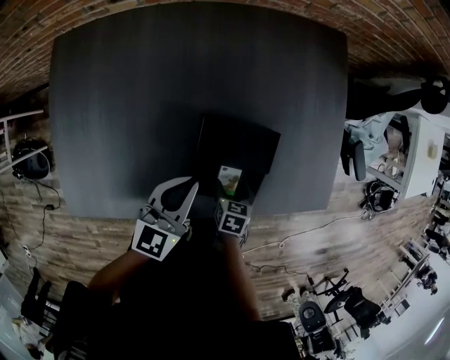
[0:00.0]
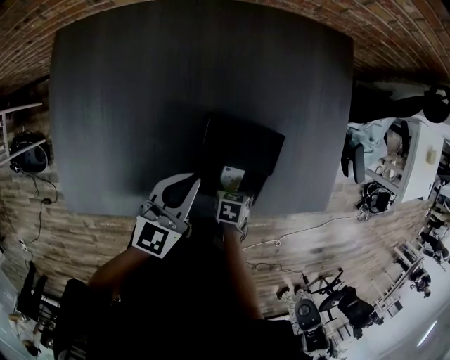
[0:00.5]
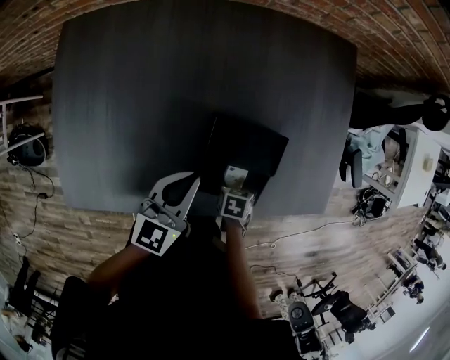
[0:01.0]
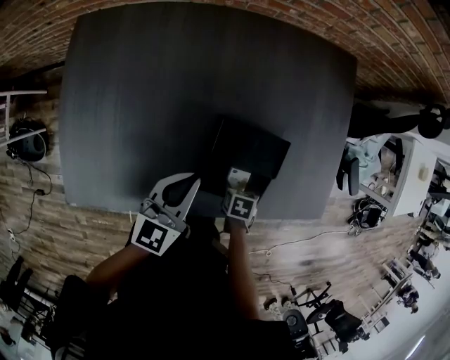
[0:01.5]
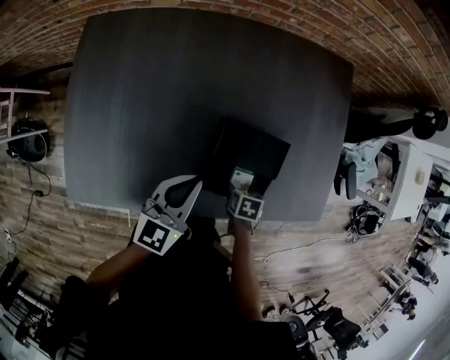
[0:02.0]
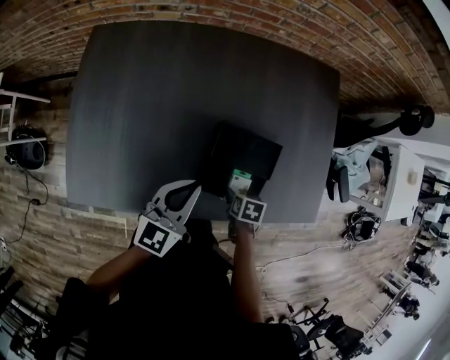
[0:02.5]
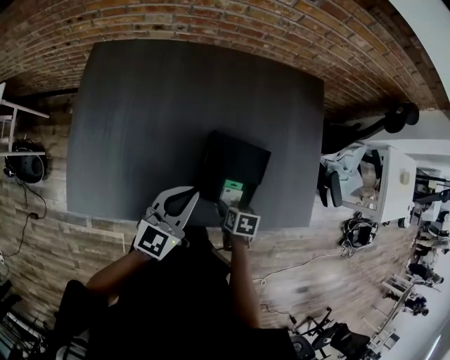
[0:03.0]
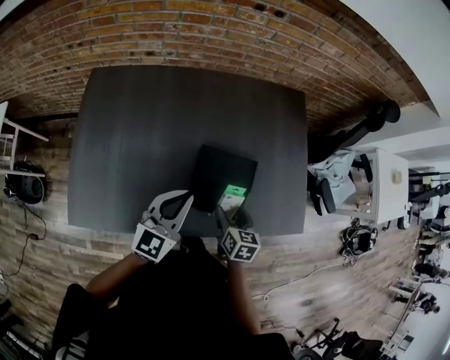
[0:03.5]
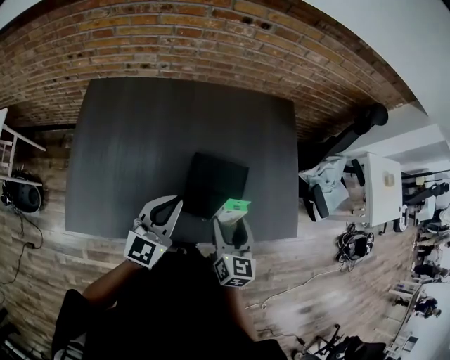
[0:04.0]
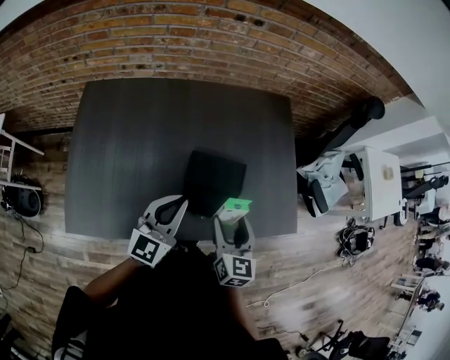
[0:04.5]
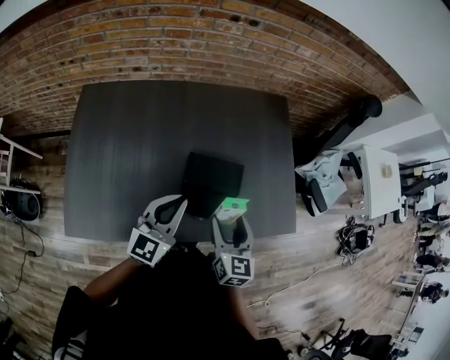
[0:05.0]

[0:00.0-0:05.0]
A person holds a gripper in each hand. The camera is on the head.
0:00.0 to 0:02.5: The left gripper moves approximately 10 cm.
0:02.5 to 0:05.0: The right gripper goes roughly 25 cm upward, and points its fingers roughly 50 degrees further upward; the left gripper goes about 10 cm upward.

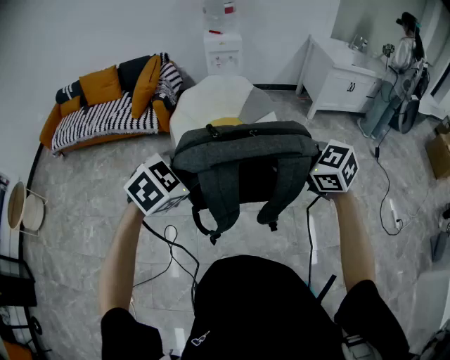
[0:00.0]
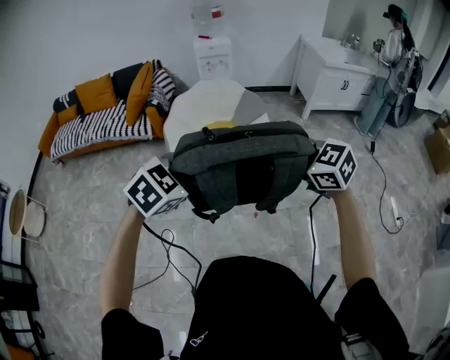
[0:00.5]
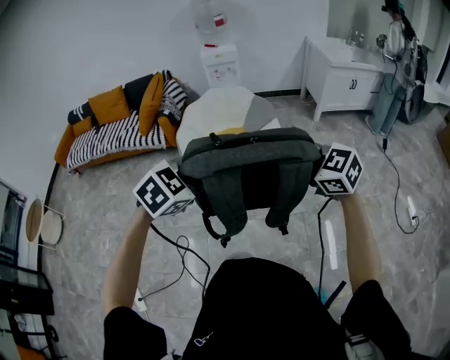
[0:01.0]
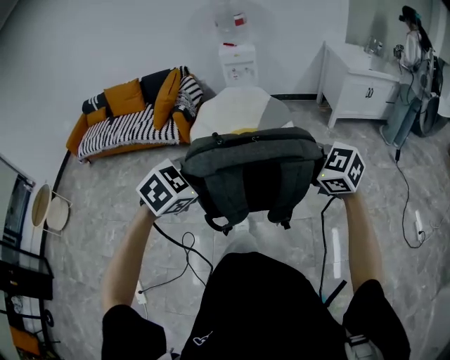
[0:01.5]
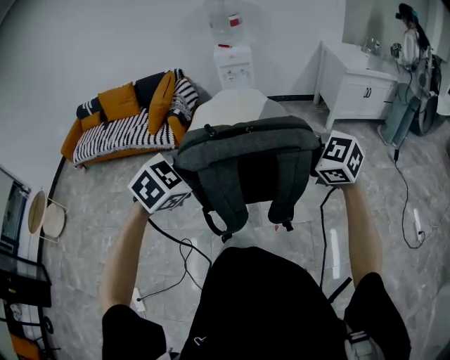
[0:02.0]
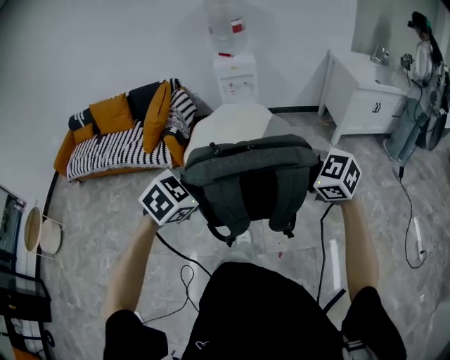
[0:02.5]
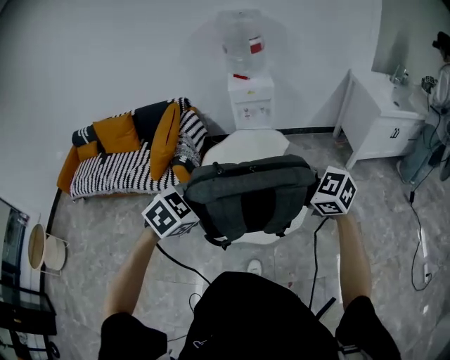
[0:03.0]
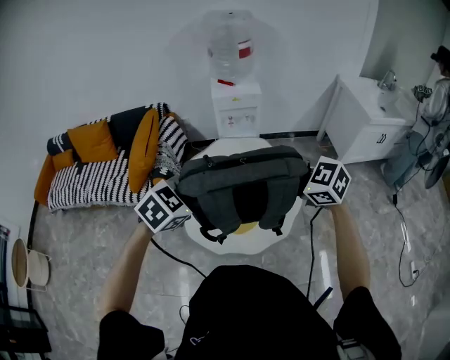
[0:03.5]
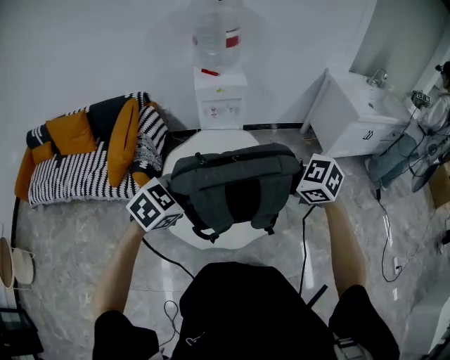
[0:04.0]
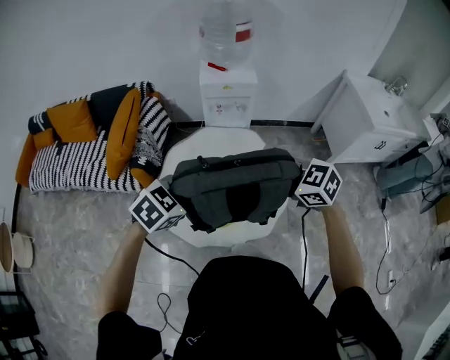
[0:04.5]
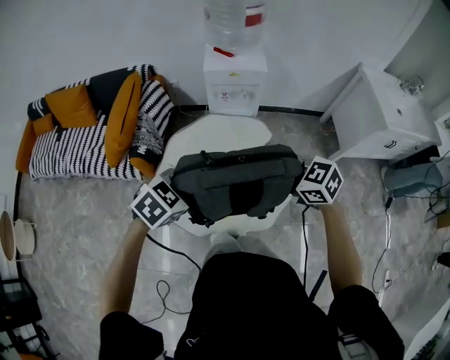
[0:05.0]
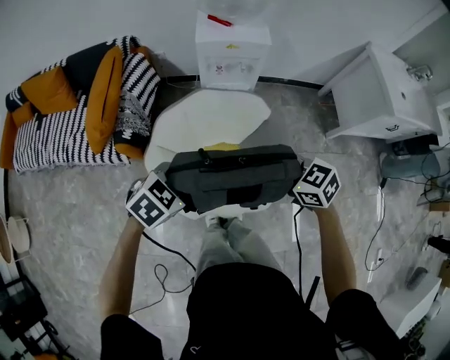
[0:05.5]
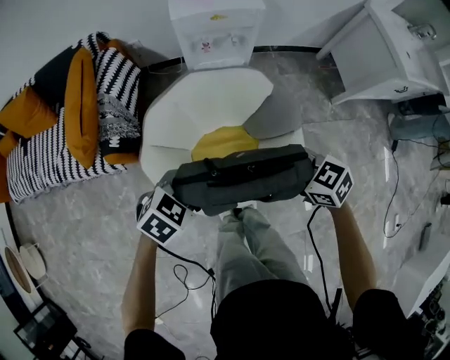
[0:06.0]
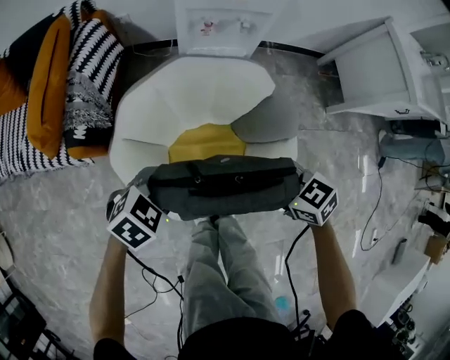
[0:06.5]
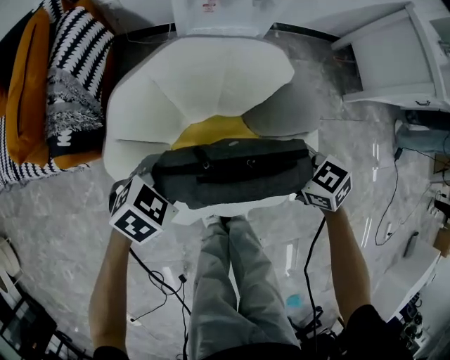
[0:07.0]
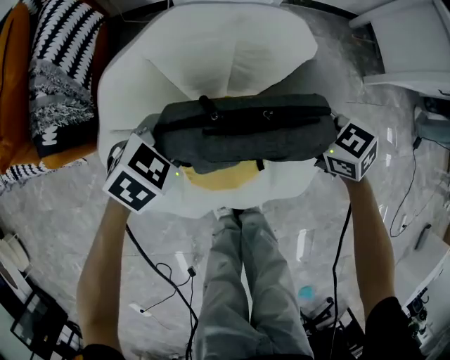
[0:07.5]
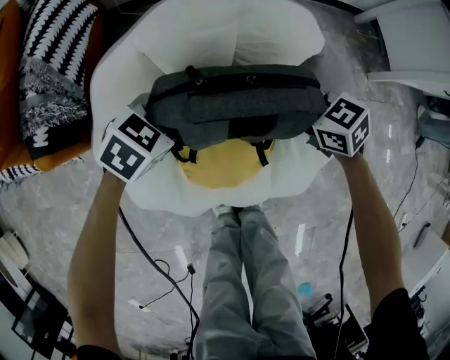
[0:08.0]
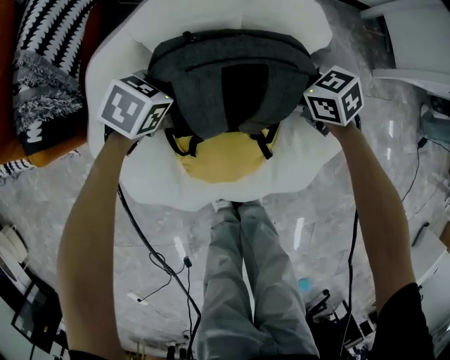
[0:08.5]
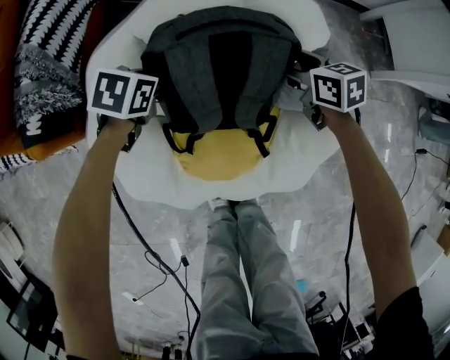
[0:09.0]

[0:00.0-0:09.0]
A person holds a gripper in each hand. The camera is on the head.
0:00.0 to 0:02.0: The left gripper travels to the right by some 5 cm. Meanwhile the right gripper shifts by approximately 5 cm.
0:02.0 to 0:04.5: The pair of grippers is taken forward, approximately 60 cm.
0:04.5 to 0:07.0: Both grippers travel together downward, some 40 cm. The right gripper rotates about 20 degrees.
0:07.0 to 0:09.0: The right gripper shifts by roughly 25 cm, turns by roughly 20 degrees, and opens its fingers. Meanwhile the left gripper shifts approximately 15 cm downward, changes its angle by about 30 degrees, and opens its fingers.

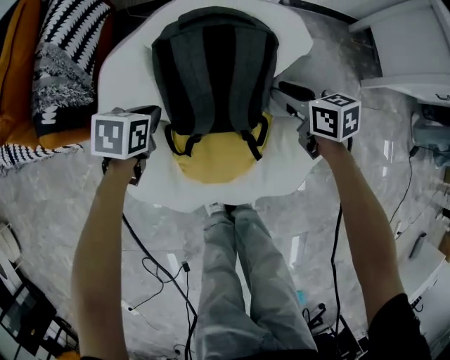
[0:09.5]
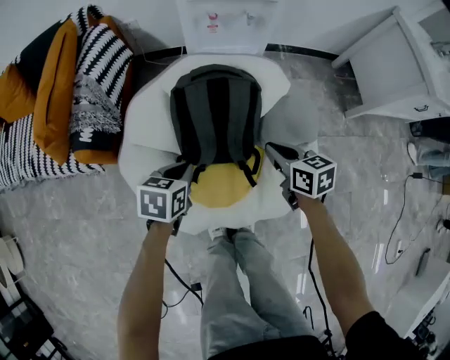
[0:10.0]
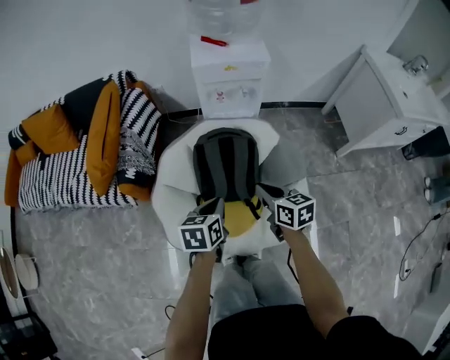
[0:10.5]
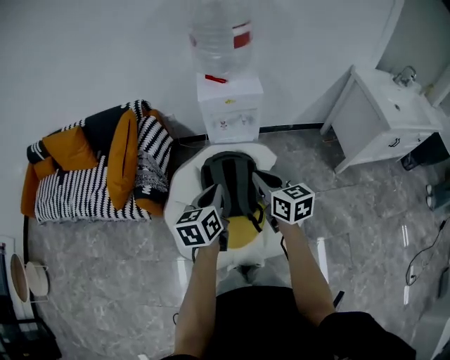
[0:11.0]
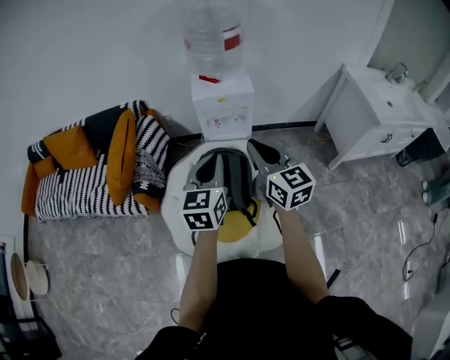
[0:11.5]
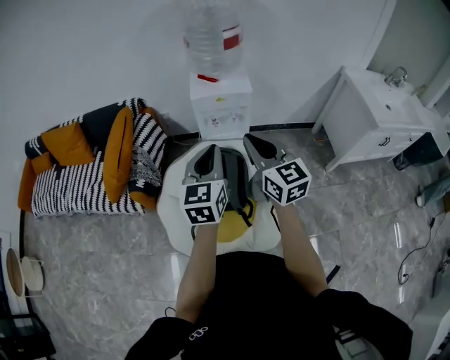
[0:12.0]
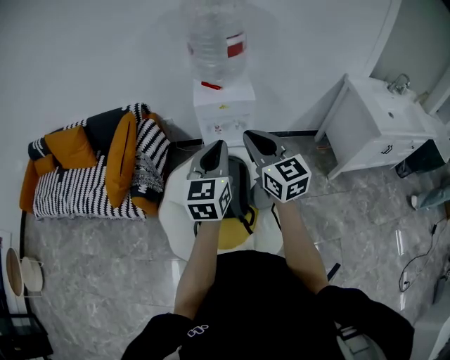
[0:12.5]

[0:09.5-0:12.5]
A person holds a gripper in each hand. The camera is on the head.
0:09.5 to 0:11.0: The two grippers go some 40 cm upward. The left gripper tilts its fingers about 40 degrees upward; the right gripper swivels roughly 30 degrees, and closes.
0:11.0 to 0:12.5: The left gripper shifts about 15 cm upward and to the right, and rotates some 30 degrees, while the right gripper goes roughly 15 cm upward, and rotates about 30 degrees.

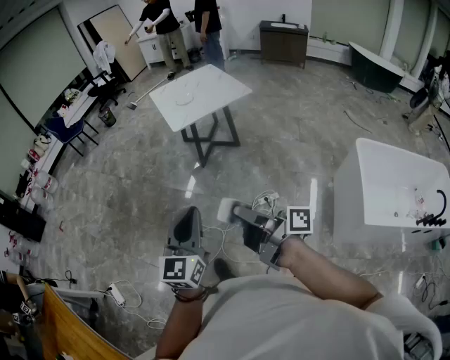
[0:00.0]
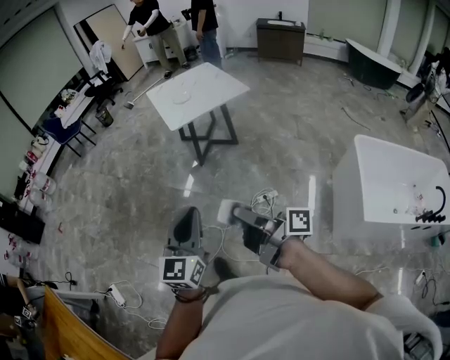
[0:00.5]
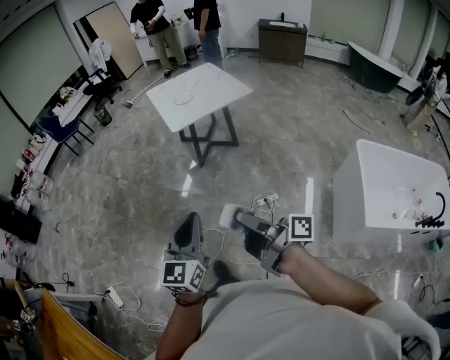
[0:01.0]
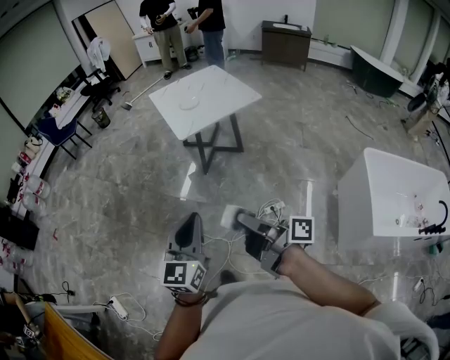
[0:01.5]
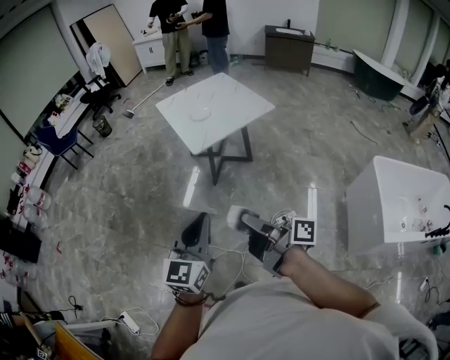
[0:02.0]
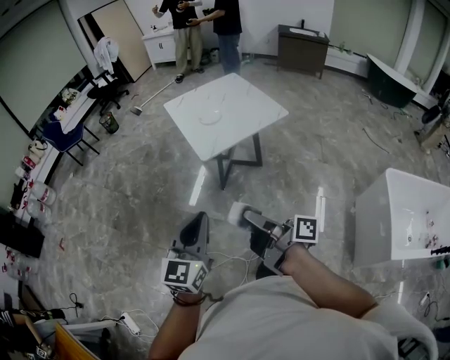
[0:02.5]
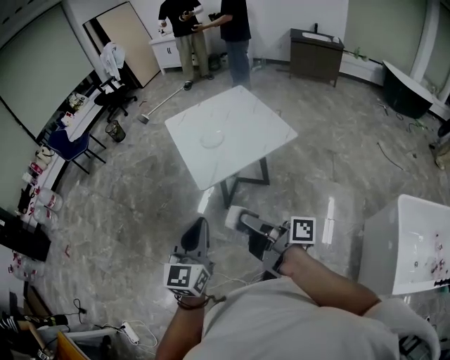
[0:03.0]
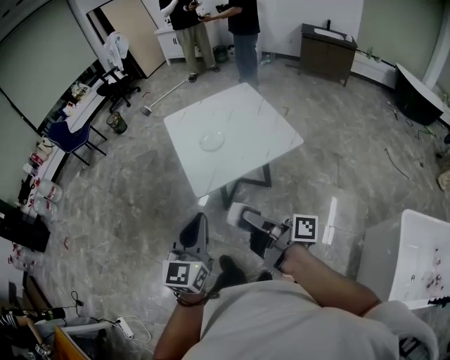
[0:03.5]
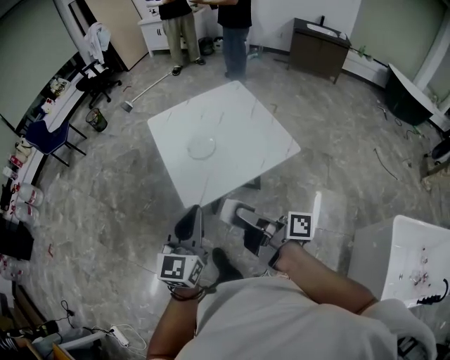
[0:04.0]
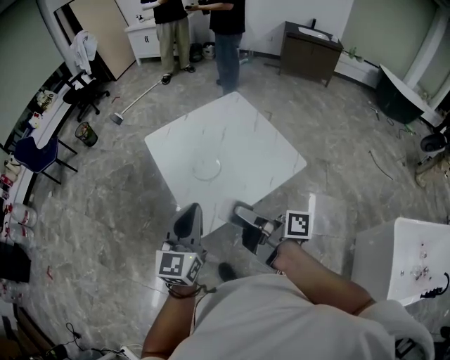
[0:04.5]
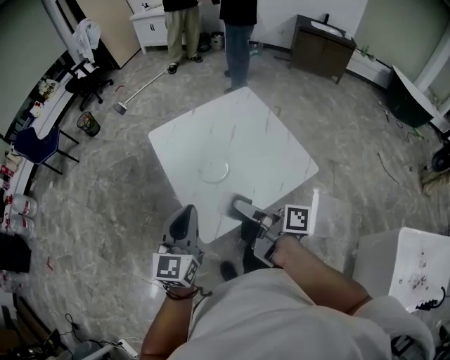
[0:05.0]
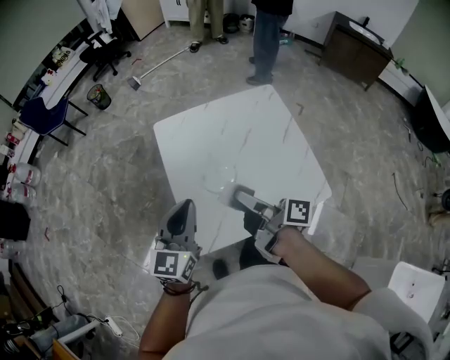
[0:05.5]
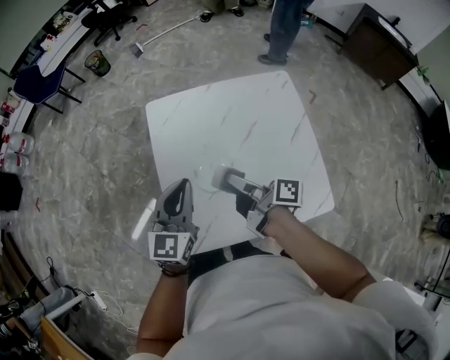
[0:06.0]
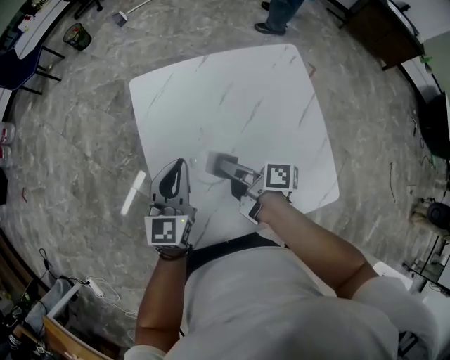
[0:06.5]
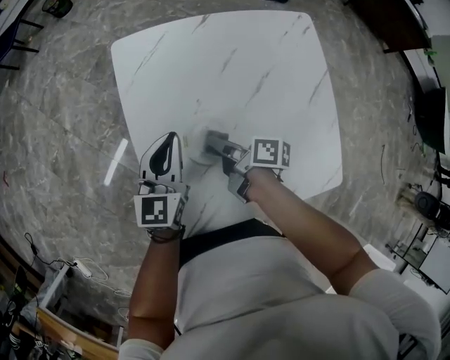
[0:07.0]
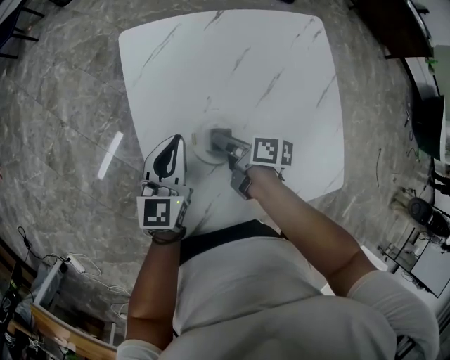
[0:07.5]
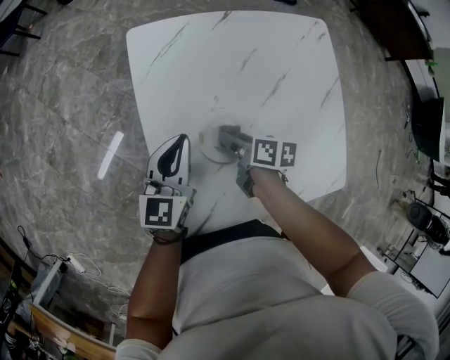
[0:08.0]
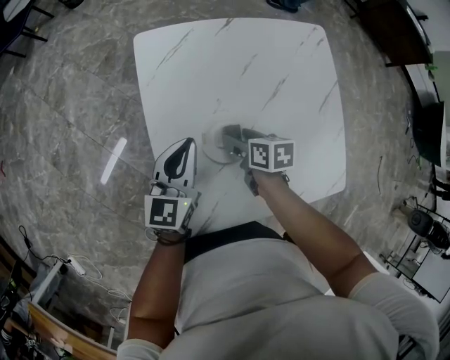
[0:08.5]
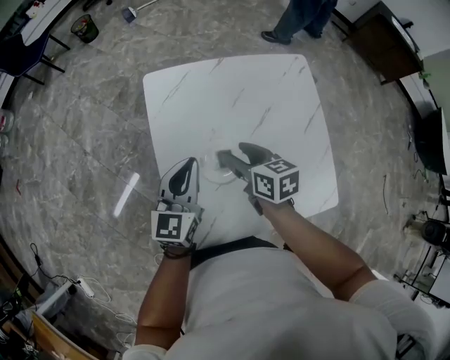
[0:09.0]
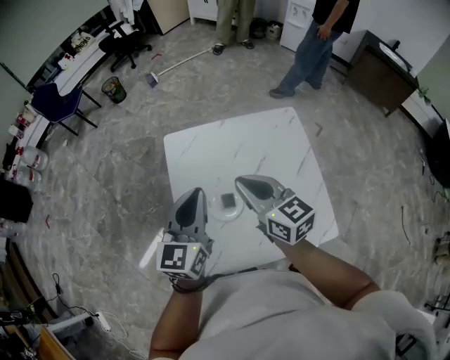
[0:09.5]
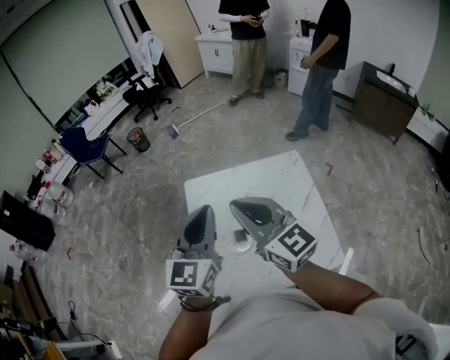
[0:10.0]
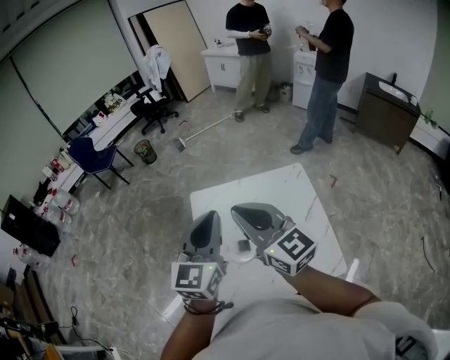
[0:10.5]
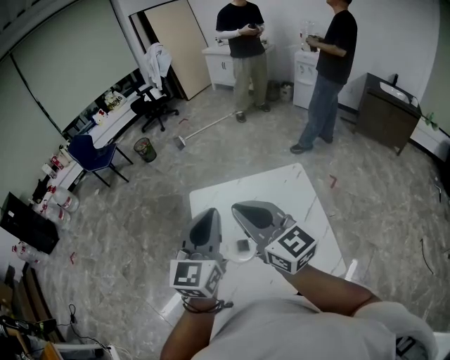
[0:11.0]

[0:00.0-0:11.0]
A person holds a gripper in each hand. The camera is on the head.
0:00.0 to 0:02.0: The two grippers go roughly 30 cm forward and to the left.
0:02.0 to 0:03.5: Both grippers travel together forward and to the right, some 40 cm.
0:03.5 to 0:05.5: The pair of grippers is taken forward, roughly 50 cm.
0:05.5 to 0:07.5: The grippers both shift downward and forward by roughly 35 cm. The right gripper tilts its fingers about 30 degrees downward.
0:07.5 to 0:09.0: The grippers both shift upward by about 15 cm. The right gripper rotates around the line of its fingers by some 40 degrees, counterclockwise from behind, and opens up.
0:09.0 to 0:11.0: Both grippers travel together upward, about 35 cm. The right gripper points its fingers approximately 40 degrees further upward, and closes.
